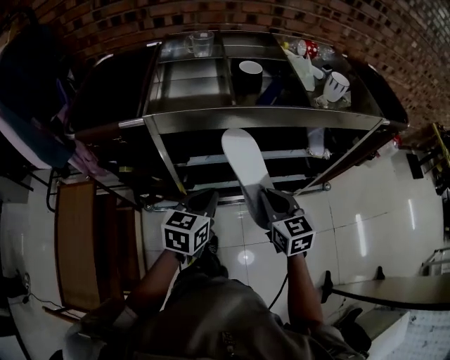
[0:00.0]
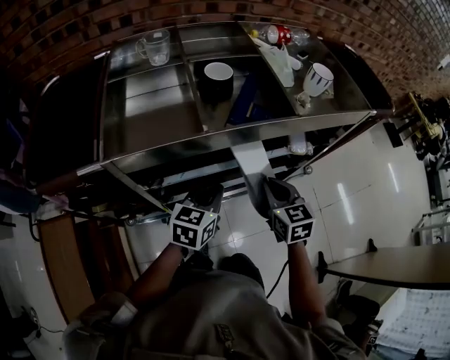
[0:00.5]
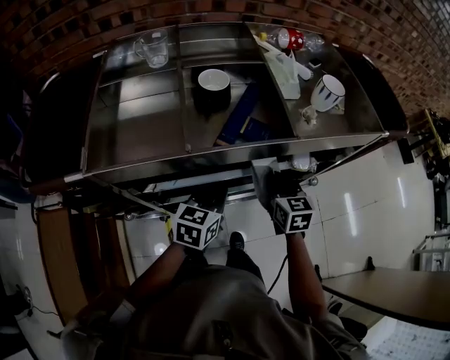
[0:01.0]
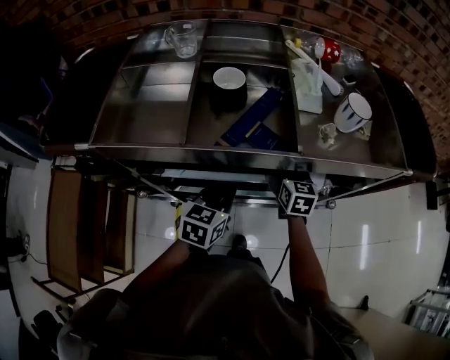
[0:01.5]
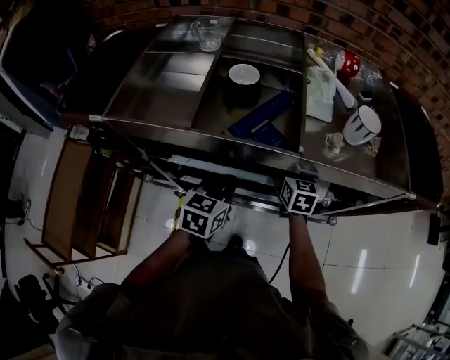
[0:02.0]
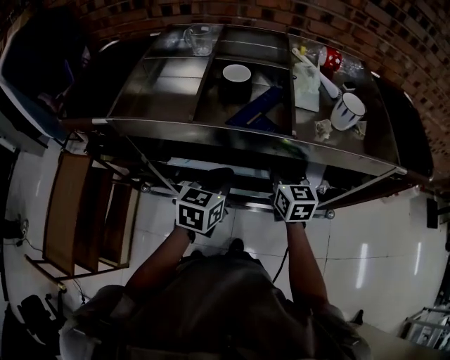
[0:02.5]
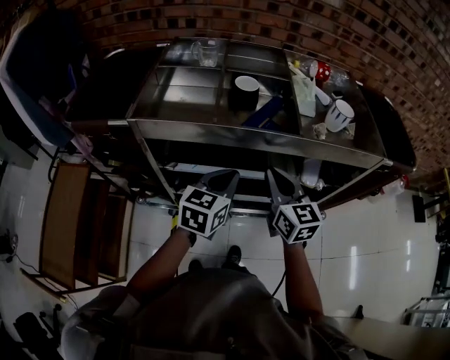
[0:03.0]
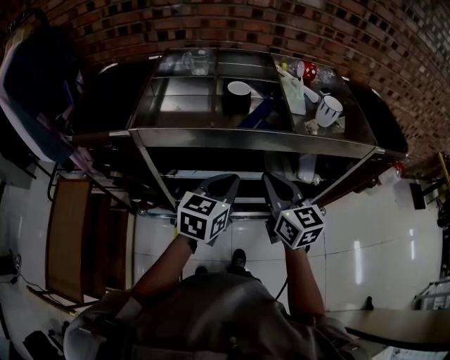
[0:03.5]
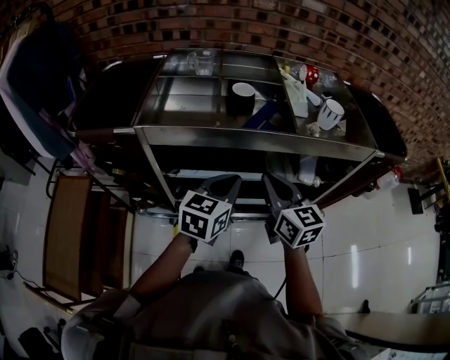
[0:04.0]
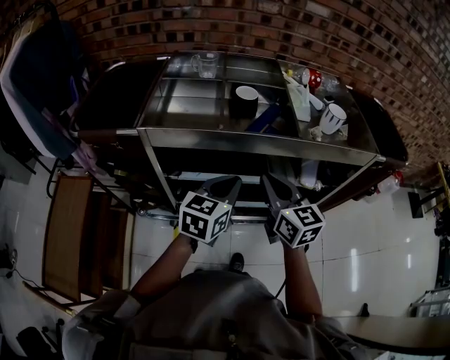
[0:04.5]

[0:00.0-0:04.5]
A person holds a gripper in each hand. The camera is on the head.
0:00.0 to 0:02.0: The left gripper goes roughly 20 cm forward and to the right, while the right gripper travels forward by approximately 30 cm.
0:02.0 to 0:04.5: The left gripper goes roughly 15 cm upward and backward; the right gripper shifts about 30 cm upward, backward and to the left, and swivels roughly 20 degrees.

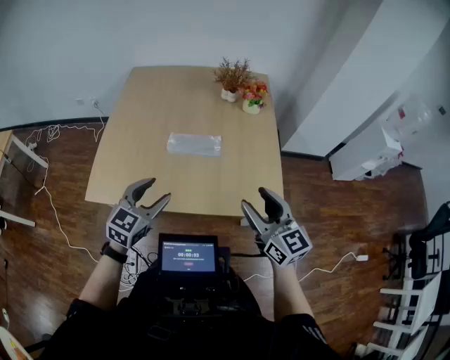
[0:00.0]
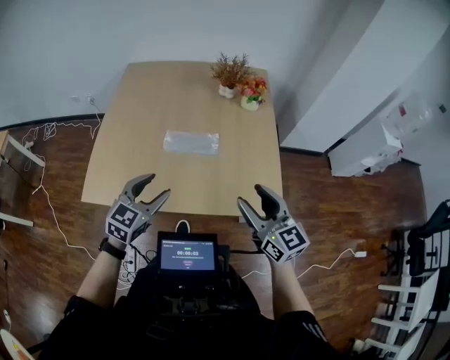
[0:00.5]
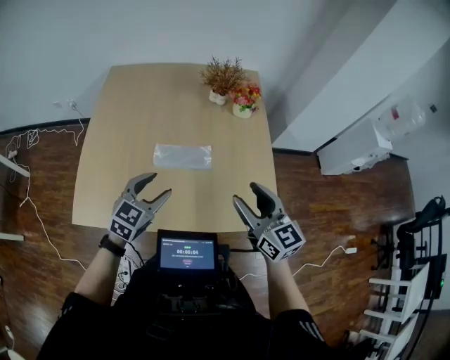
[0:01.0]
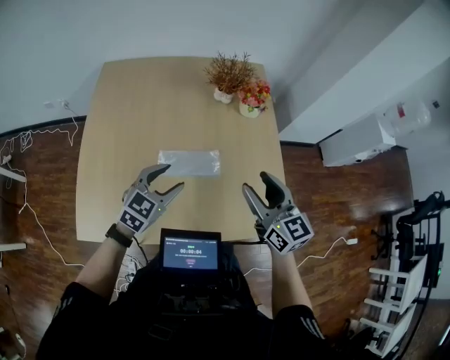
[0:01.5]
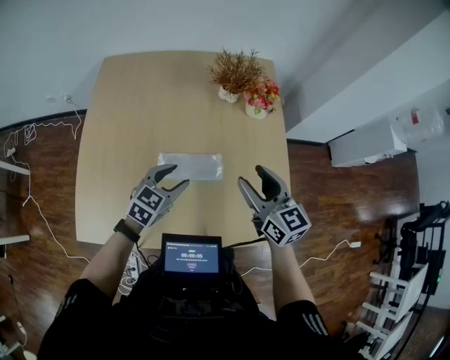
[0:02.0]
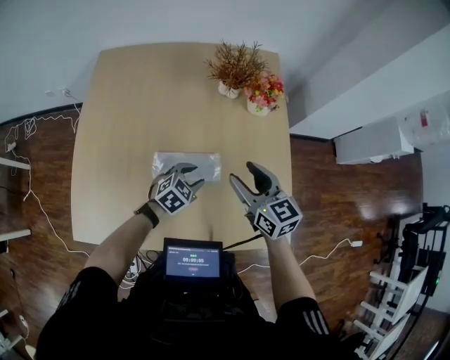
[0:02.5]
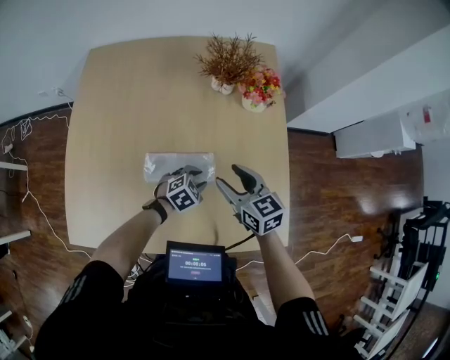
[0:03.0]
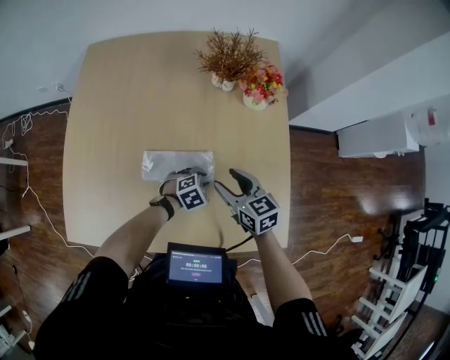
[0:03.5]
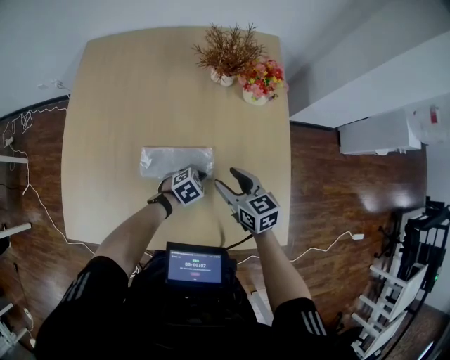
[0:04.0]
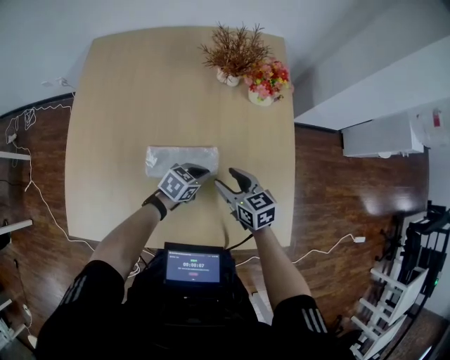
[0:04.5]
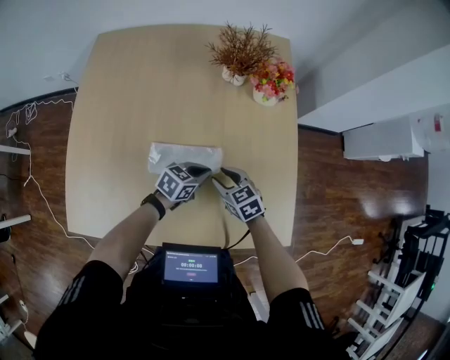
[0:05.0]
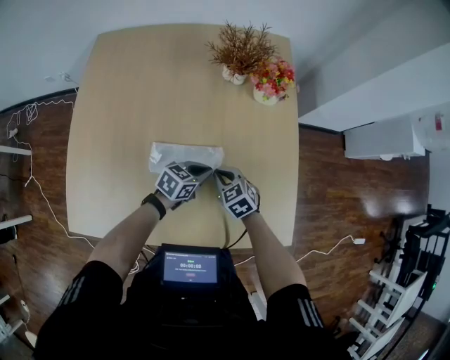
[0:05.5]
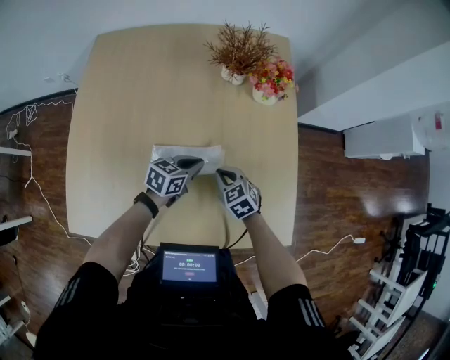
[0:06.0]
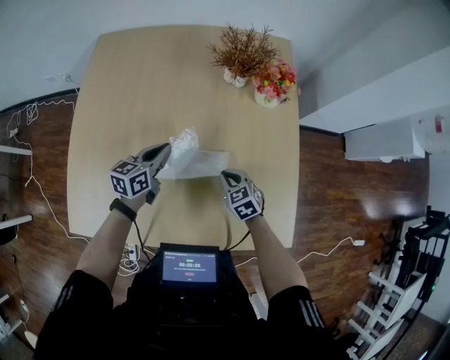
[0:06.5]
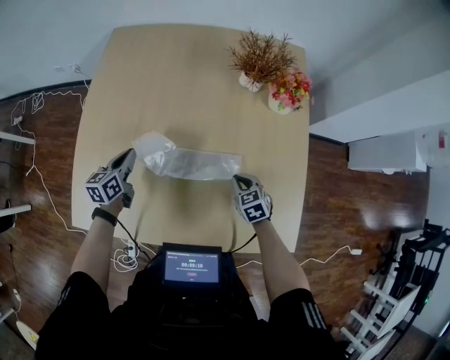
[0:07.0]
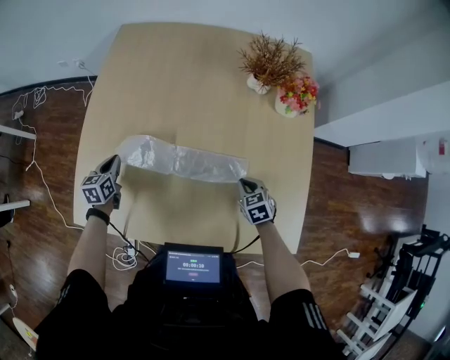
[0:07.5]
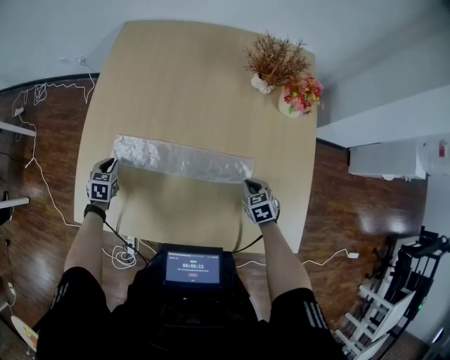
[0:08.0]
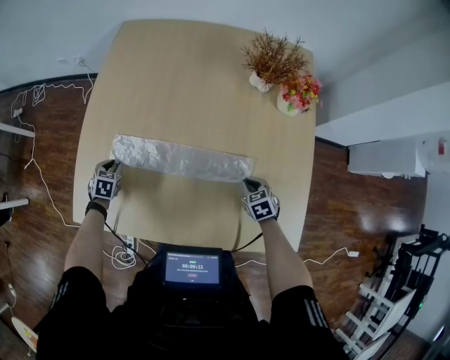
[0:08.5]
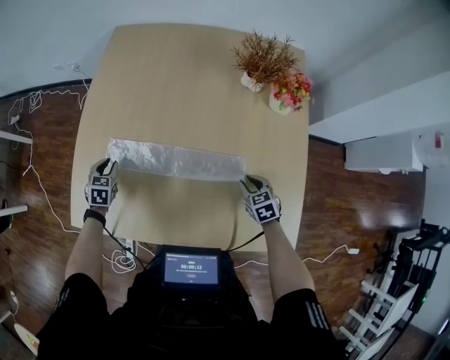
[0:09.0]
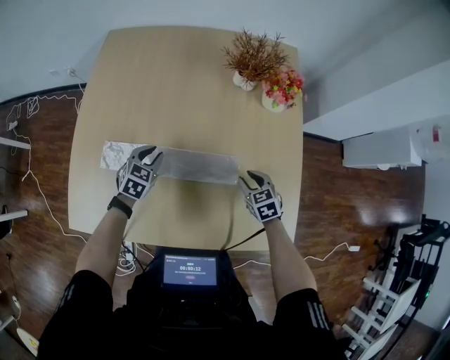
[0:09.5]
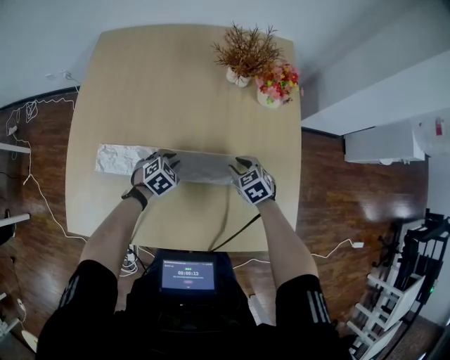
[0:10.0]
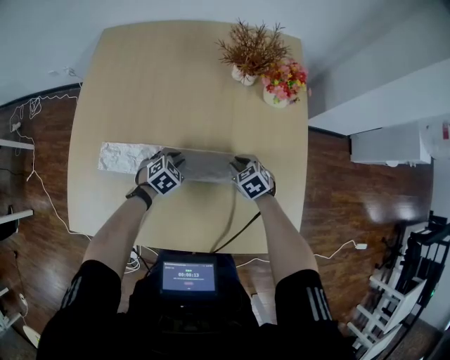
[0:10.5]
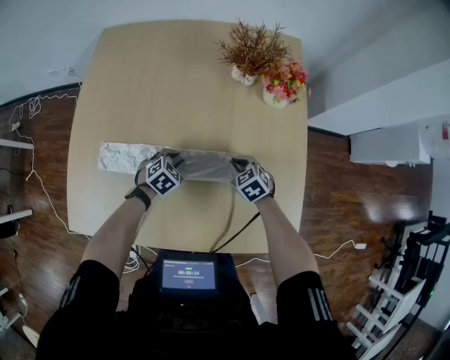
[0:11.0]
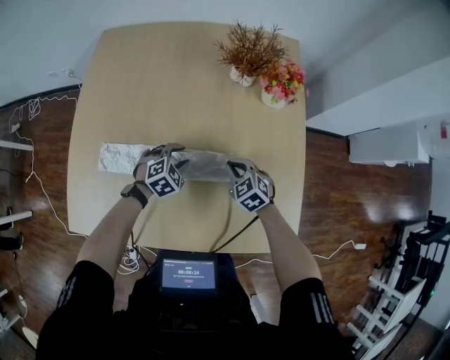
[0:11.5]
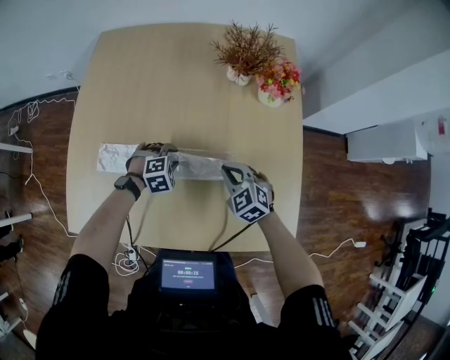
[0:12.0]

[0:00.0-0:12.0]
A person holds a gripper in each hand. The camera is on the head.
0:00.0 to 0:02.0: The right gripper travels forward by approximately 25 cm. The left gripper travels forward and downward by roughly 30 cm.
0:02.0 to 0:04.0: The left gripper heads downward and to the right, covering about 25 cm, rotates approximately 30 degrees, and closes its fingers. The right gripper heads downward, covering approximately 20 cm, and swivels about 20 degrees.
0:04.0 to 0:06.0: The left gripper is displaced upward and to the left by about 10 cm, and rotates roughly 40 degrees. The right gripper is displaced downward by approximately 10 cm, swivels about 30 degrees, and closes.
0:06.0 to 0:08.0: The left gripper ends up approximately 40 cm from where it was, and rotates about 50 degrees; the right gripper travels downward by some 5 cm.
0:08.0 to 0:10.0: The left gripper moves to the right, some 30 cm, and changes its angle by approximately 40 degrees. Meanwhile the right gripper goes some 5 cm forward, and opens up.
0:10.0 to 0:12.0: The left gripper rotates some 30 degrees; the right gripper shifts approximately 5 cm upward, changes its angle by approximately 20 degrees, and closes its fingers.

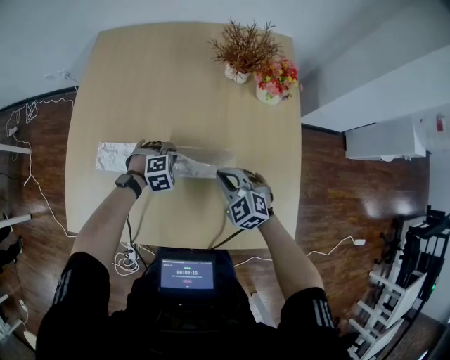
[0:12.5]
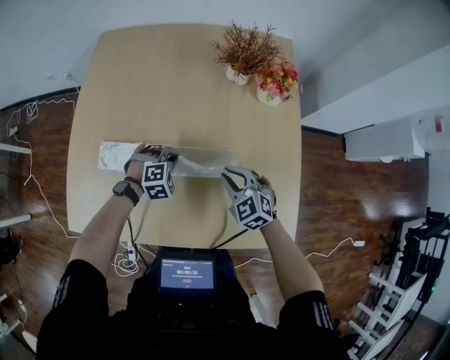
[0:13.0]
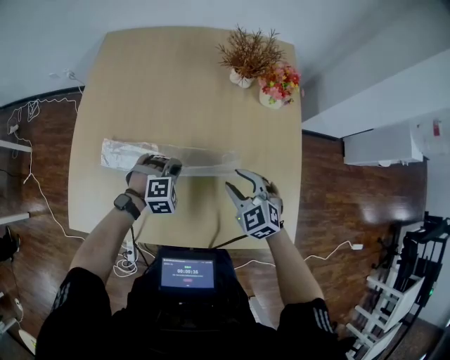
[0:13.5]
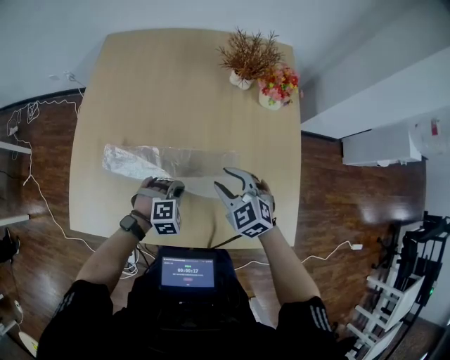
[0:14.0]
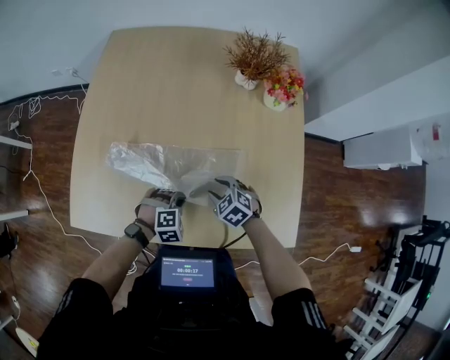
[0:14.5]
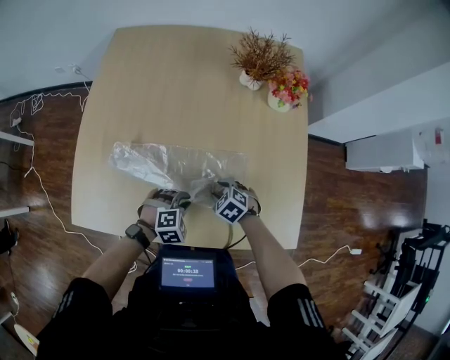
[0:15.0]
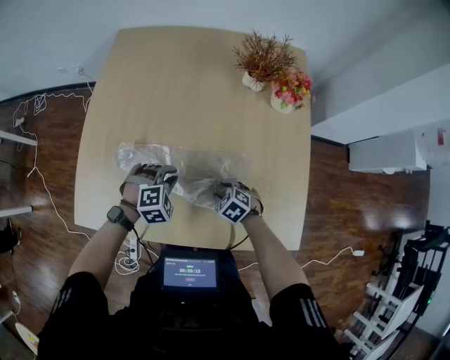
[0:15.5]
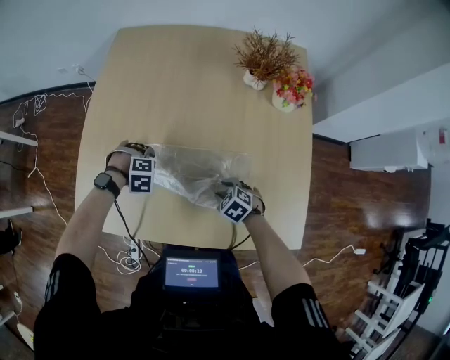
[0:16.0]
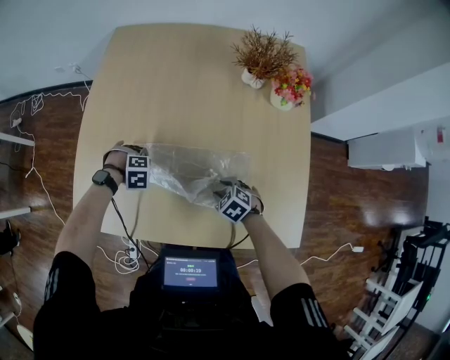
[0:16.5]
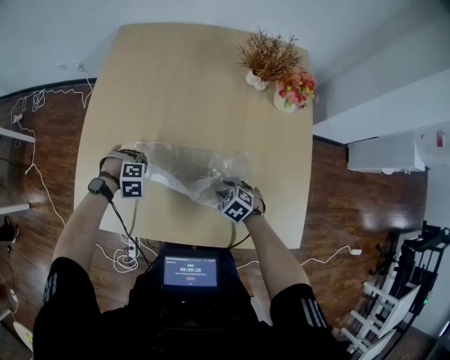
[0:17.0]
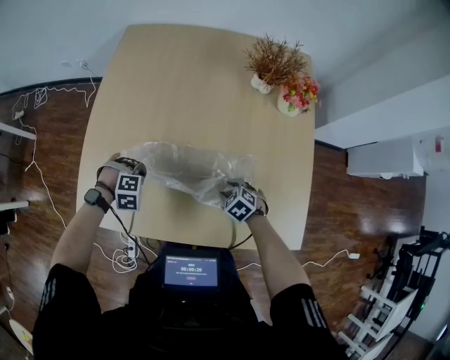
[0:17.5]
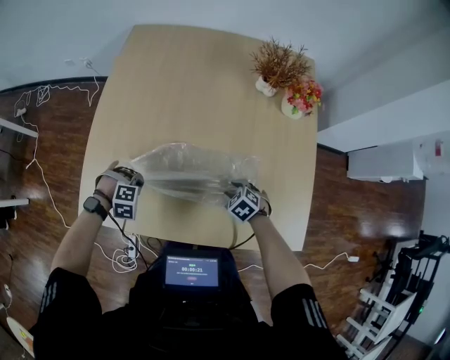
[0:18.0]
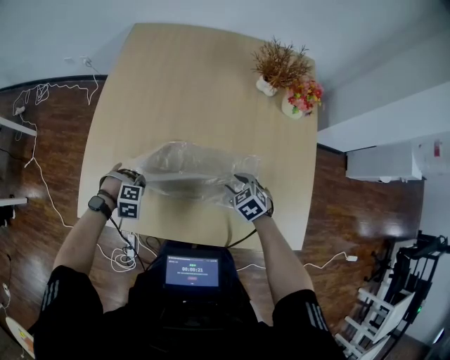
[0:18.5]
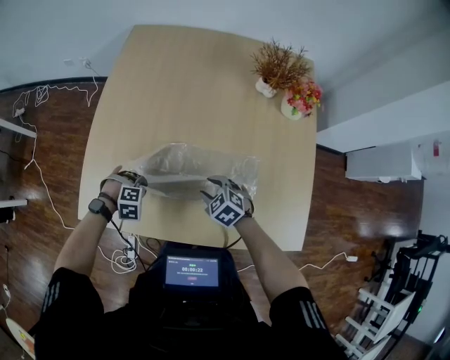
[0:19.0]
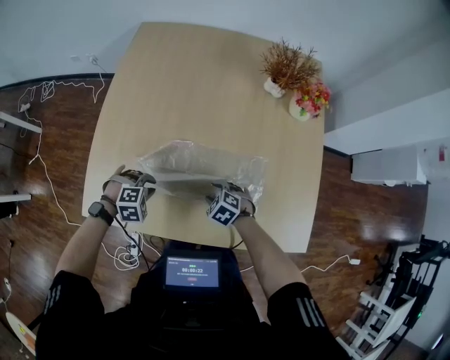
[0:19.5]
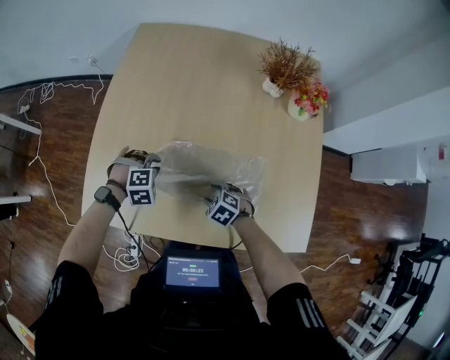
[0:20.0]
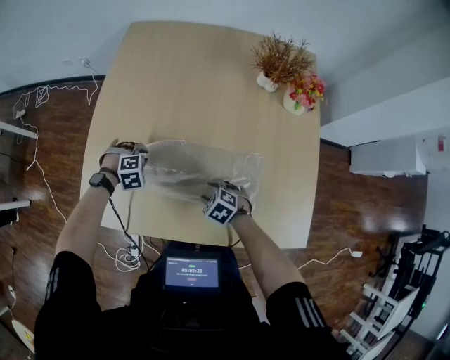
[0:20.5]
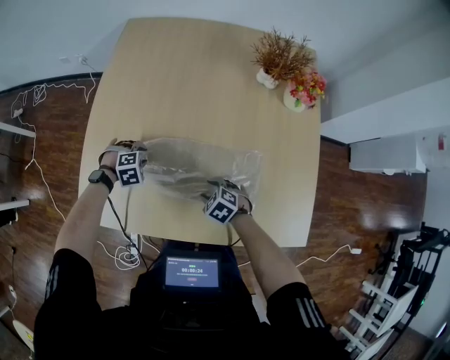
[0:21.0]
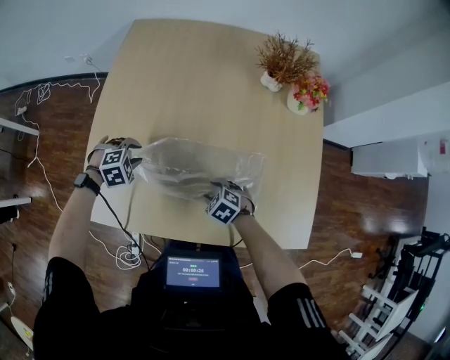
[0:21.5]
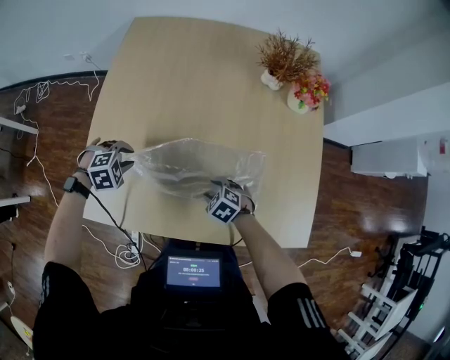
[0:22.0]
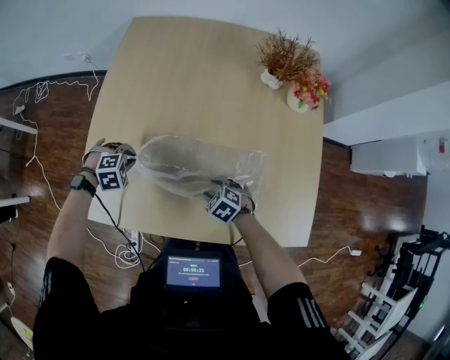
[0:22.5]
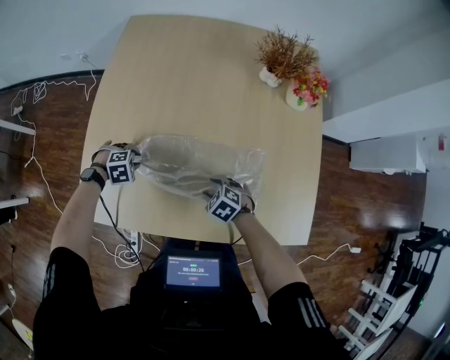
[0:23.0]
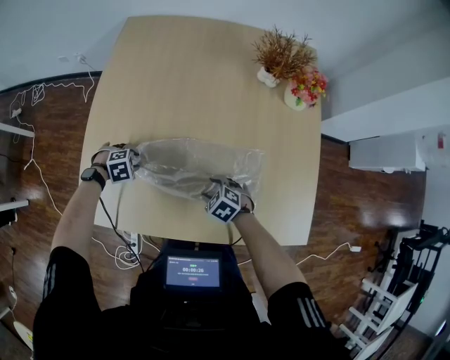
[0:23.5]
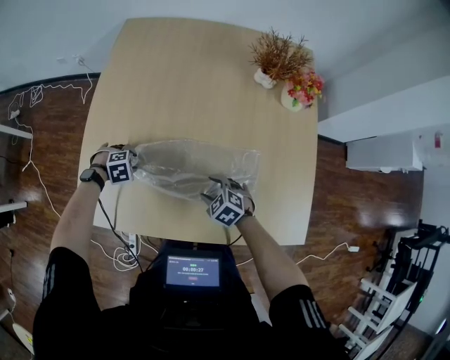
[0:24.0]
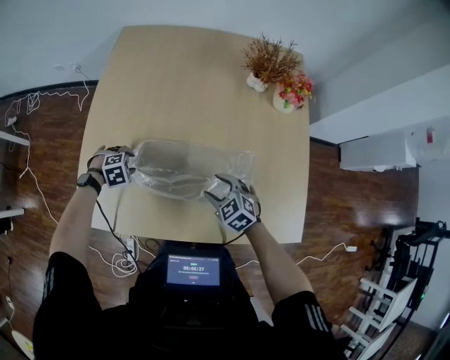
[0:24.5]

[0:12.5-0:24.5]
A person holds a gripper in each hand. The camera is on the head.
0:12.5 to 0:14.5: The right gripper shifts roughly 5 cm downward, swivels some 20 degrees, and opens its fingers; the left gripper goes roughly 15 cm backward.
0:14.5 to 0:16.5: The left gripper moves roughly 5 cm upward and comes back, changes its angle by some 20 degrees, and opens up; the right gripper goes roughly 5 cm downward.
0:16.5 to 0:18.5: The left gripper moves approximately 10 cm, and closes up, while the right gripper changes place by roughly 5 cm.
0:18.5 to 0:20.5: The right gripper shifts by approximately 10 cm. The left gripper changes place by some 10 cm.
0:20.5 to 0:22.5: The left gripper changes place by some 5 cm.
0:22.5 to 0:24.5: The left gripper opens; the right gripper travels upward by approximately 10 cm.
